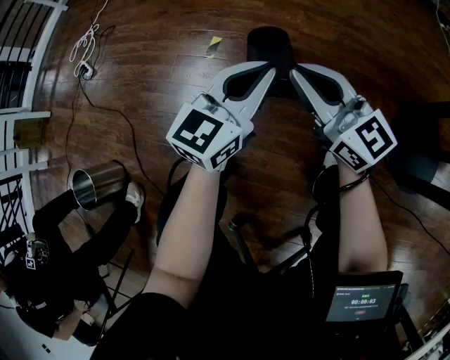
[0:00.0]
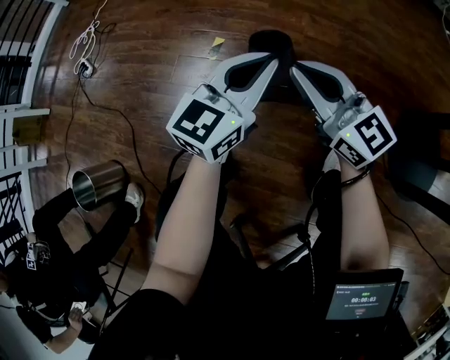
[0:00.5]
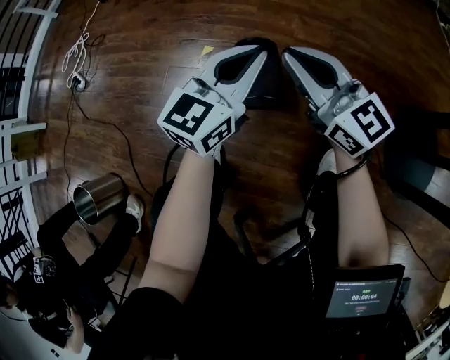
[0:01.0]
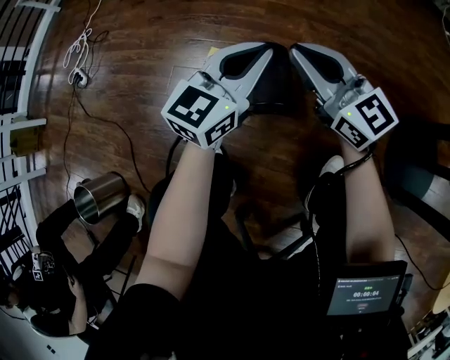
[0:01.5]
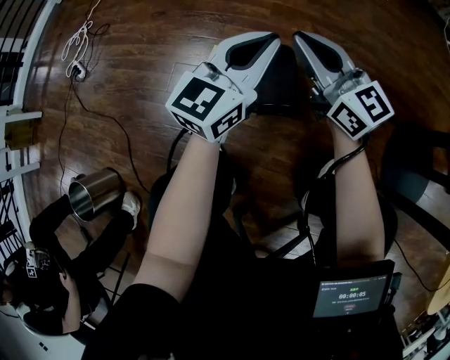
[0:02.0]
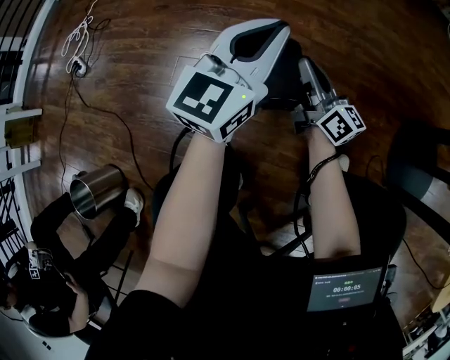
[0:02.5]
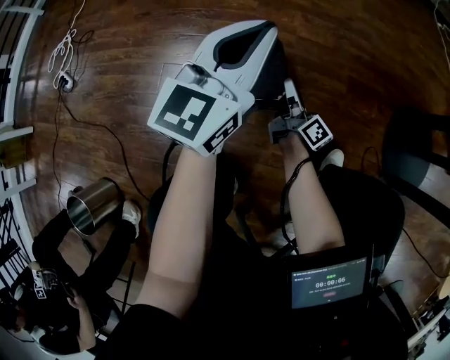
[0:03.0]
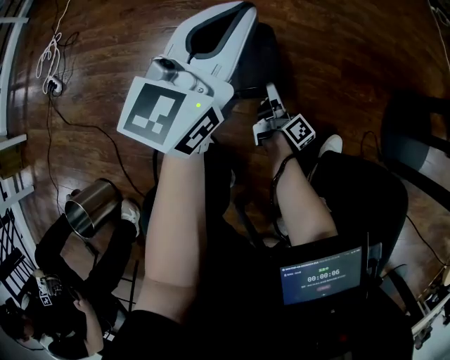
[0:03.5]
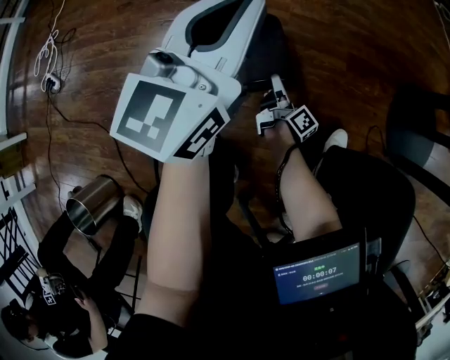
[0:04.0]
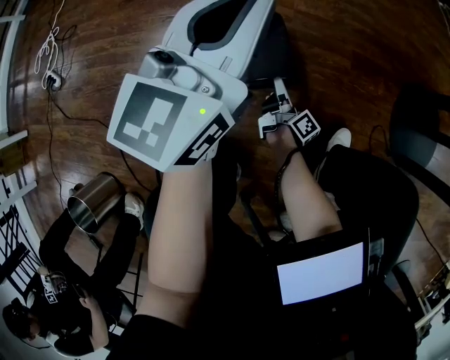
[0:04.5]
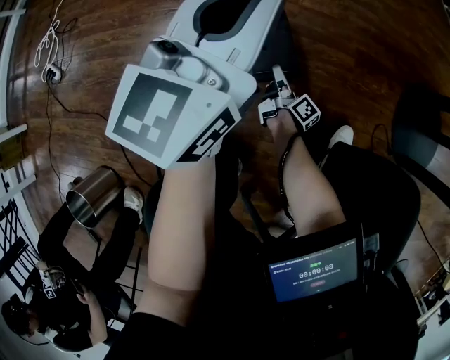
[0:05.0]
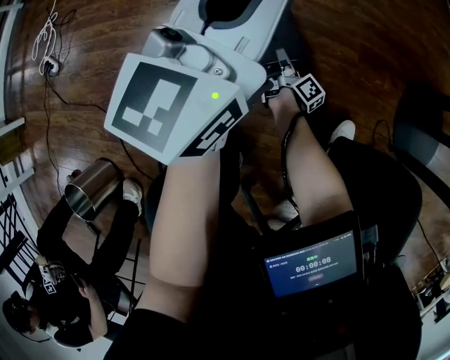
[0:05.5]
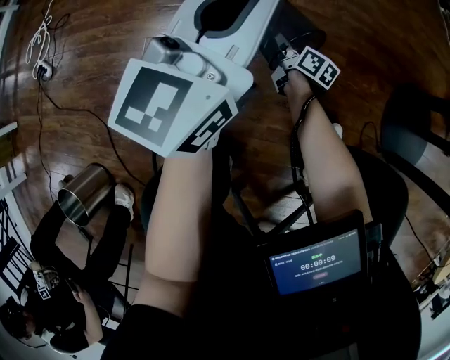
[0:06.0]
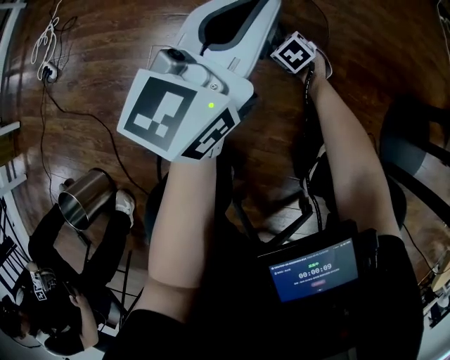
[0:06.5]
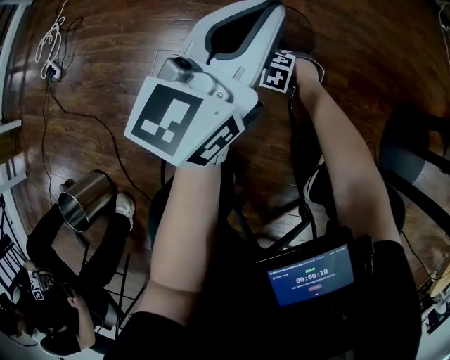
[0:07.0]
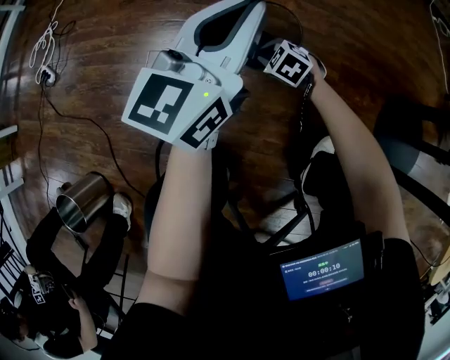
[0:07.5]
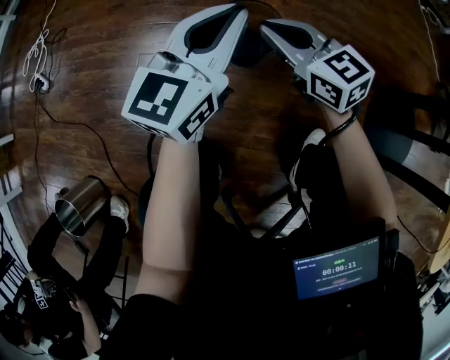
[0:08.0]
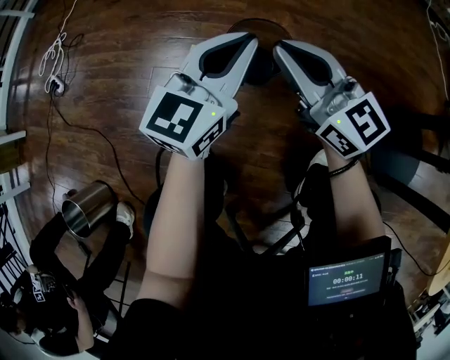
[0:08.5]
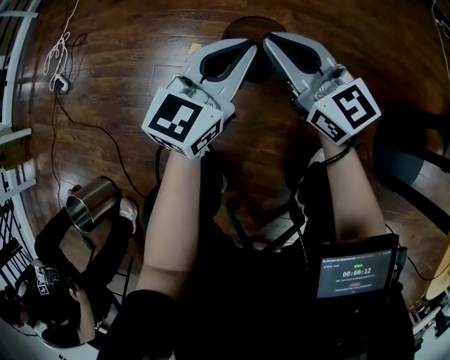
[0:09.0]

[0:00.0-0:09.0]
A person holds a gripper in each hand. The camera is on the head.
0:00.0 to 0:02.0: Both grippers move forward, approximately 15 cm.
0:02.0 to 0:04.5: The right gripper shifts about 35 cm downward, rolls clockwise, seen from behind, by roughly 70 degrees, and opens up.
0:04.5 to 0:07.0: The right gripper shifts by roughly 10 cm, rolls counterclockwise, seen from behind, by approximately 130 degrees, and closes its fingers.
0:07.0 to 0:09.0: The right gripper is displaced upward by approximately 40 cm, and tilts its fingers roughly 80 degrees upward; the left gripper shifts approximately 5 cm downward.

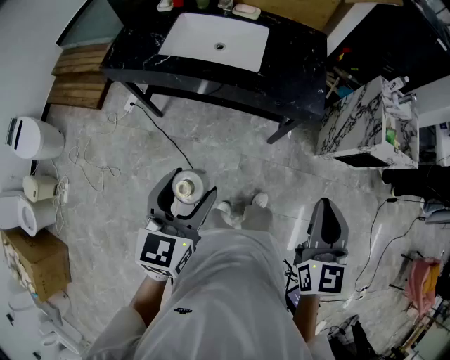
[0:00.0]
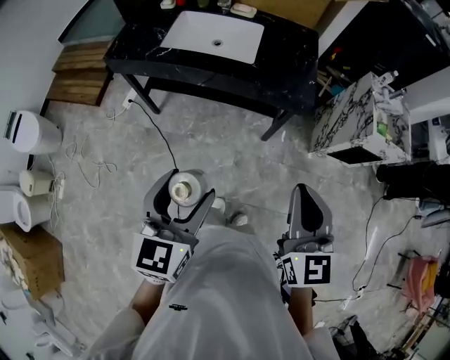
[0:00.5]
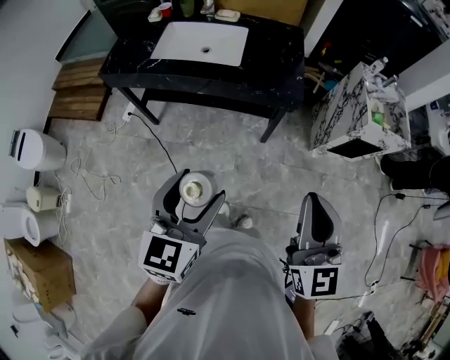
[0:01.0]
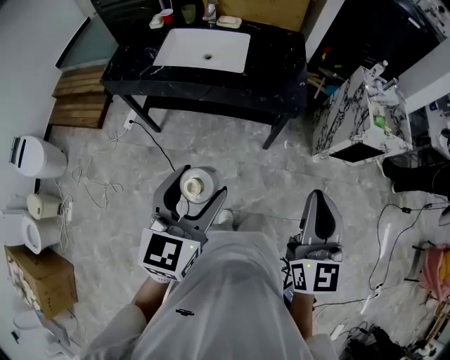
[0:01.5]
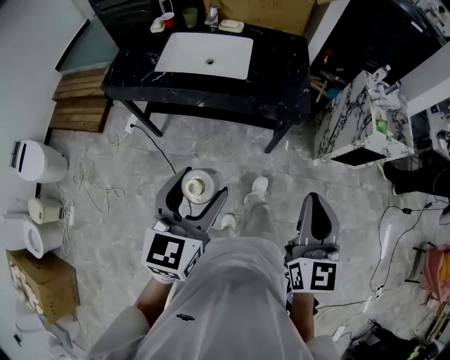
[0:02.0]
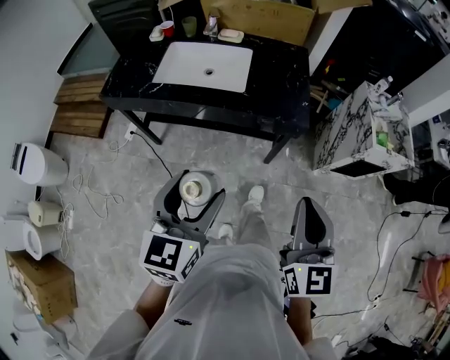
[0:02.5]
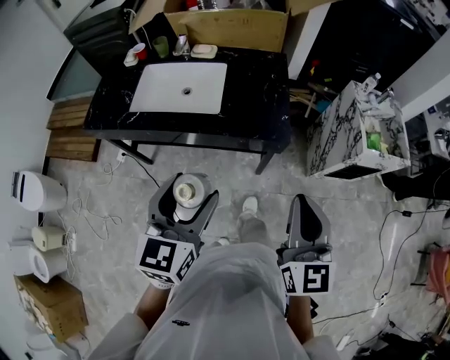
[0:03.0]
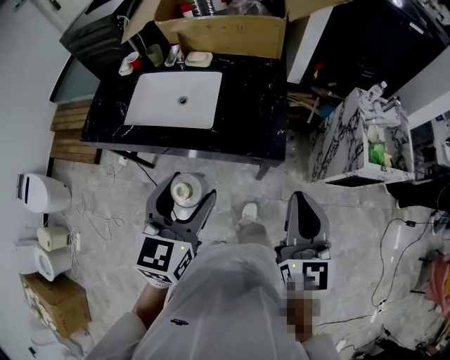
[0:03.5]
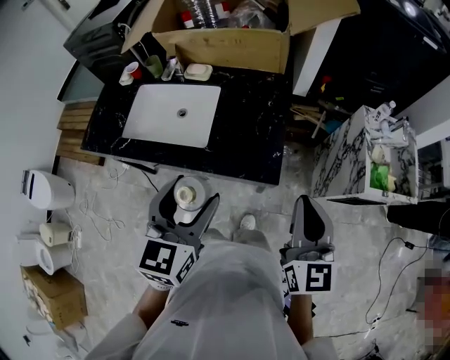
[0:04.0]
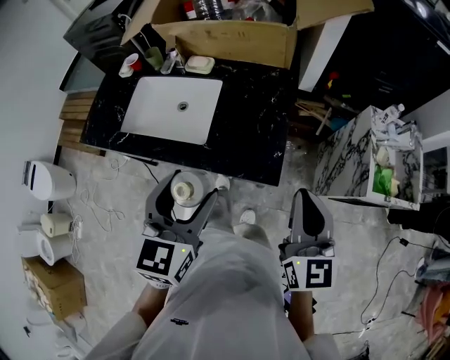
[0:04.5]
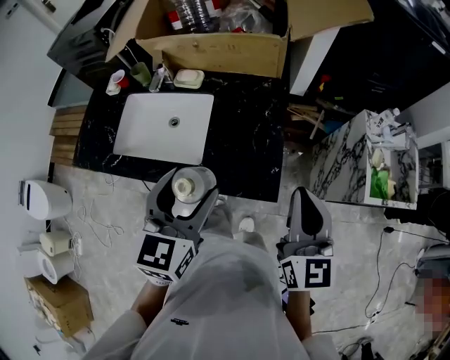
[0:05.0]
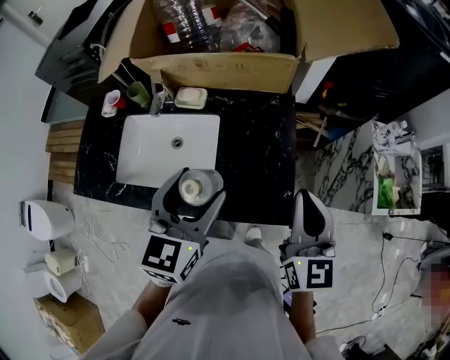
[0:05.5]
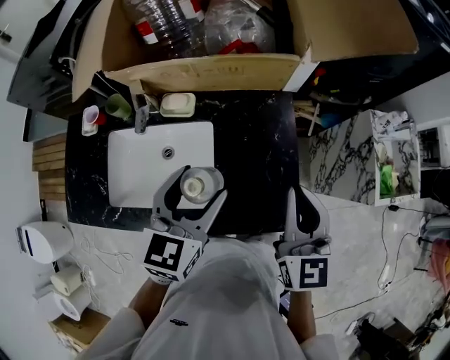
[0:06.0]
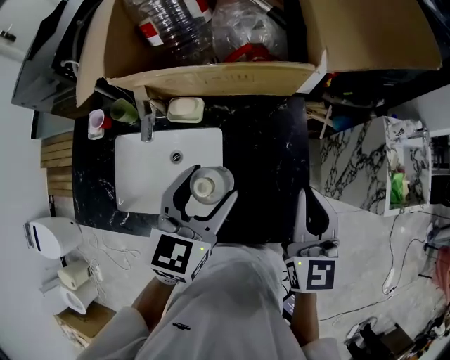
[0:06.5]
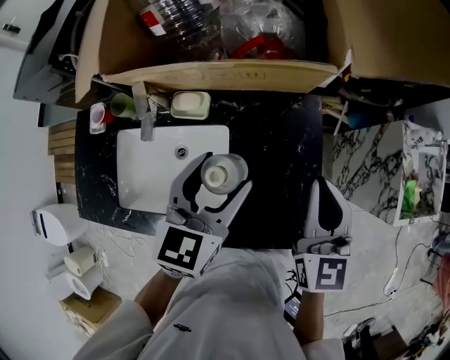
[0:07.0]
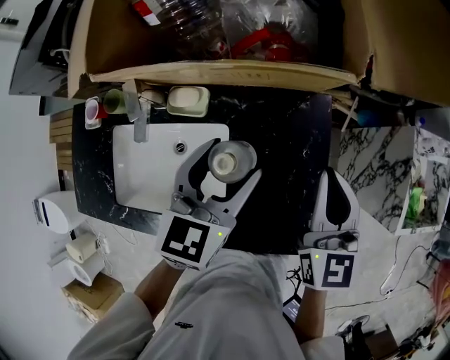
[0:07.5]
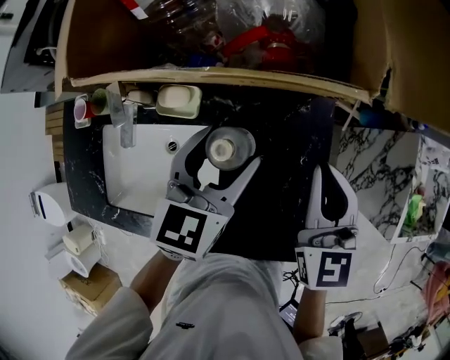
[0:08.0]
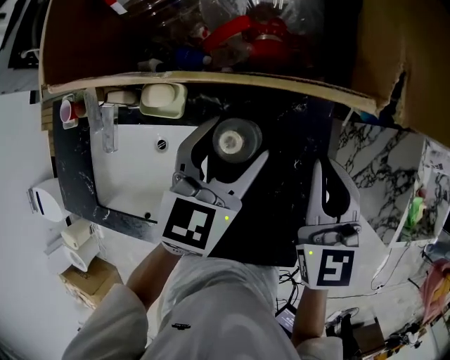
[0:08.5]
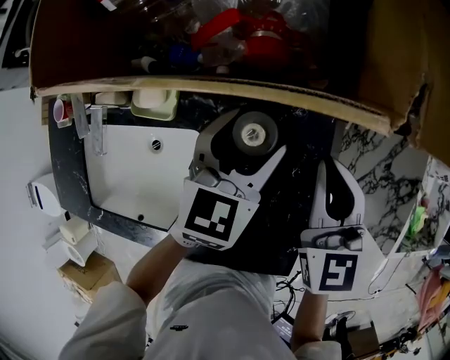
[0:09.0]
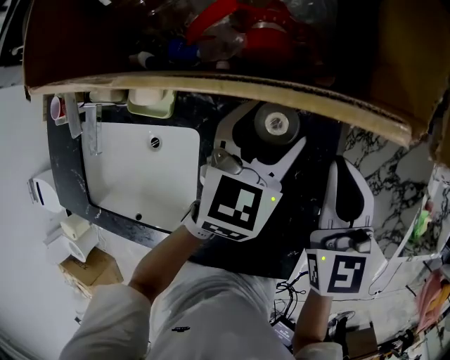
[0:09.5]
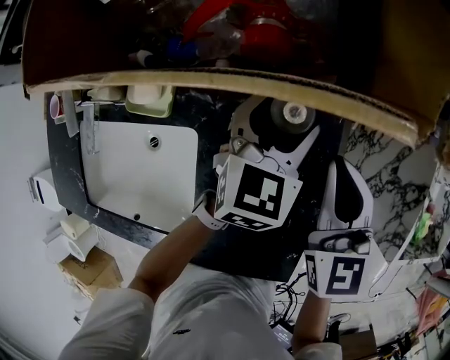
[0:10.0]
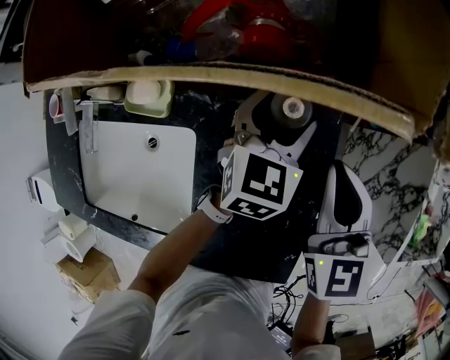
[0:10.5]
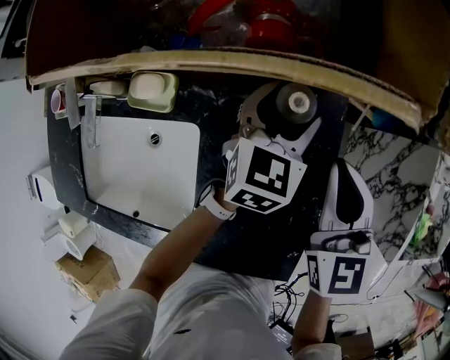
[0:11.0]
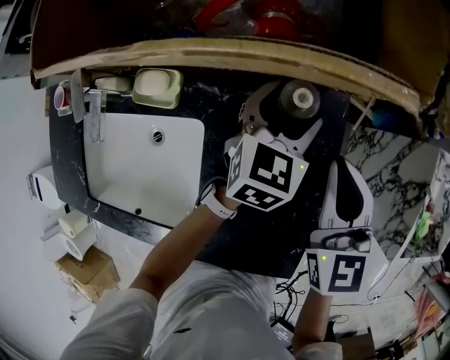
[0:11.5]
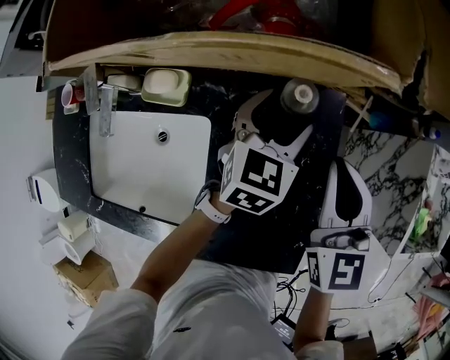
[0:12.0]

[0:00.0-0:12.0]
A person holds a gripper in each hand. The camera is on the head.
0:00.0 to 0:02.0: The right gripper goes roughly 5 cm backward.
0:02.0 to 0:04.0: The two grippers go roughly 35 cm forward and to the right.
0:04.0 to 0:06.0: The right gripper is displaced forward and to the left by approximately 25 cm; the left gripper is displaced forward by roughly 25 cm.
0:06.0 to 0:08.0: Both grippers move forward and downward, about 20 cm.
0:08.0 to 0:10.0: The left gripper heads downward, to the right and forward, covering some 20 cm. The right gripper is displaced downward by some 10 cm.
0:10.0 to 0:12.0: The grippers move only a little.

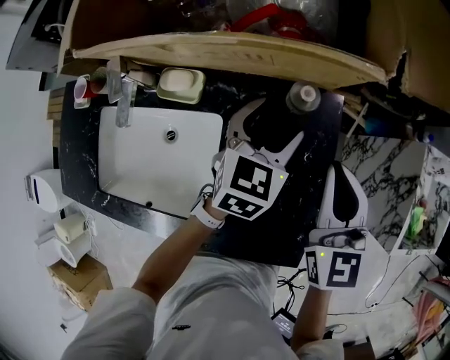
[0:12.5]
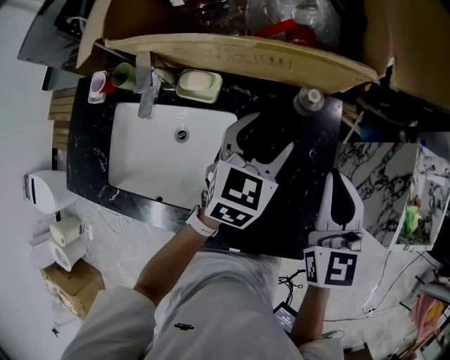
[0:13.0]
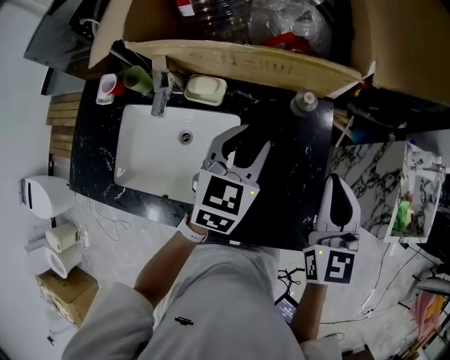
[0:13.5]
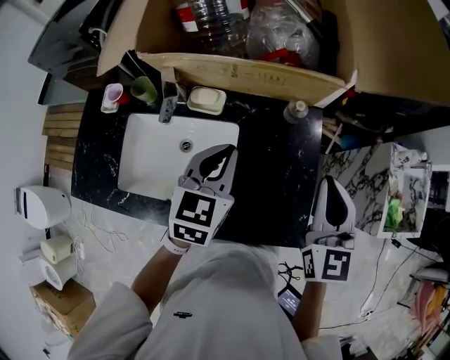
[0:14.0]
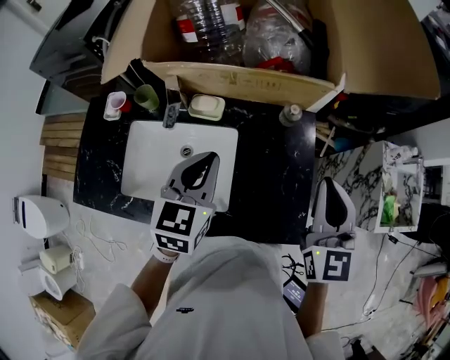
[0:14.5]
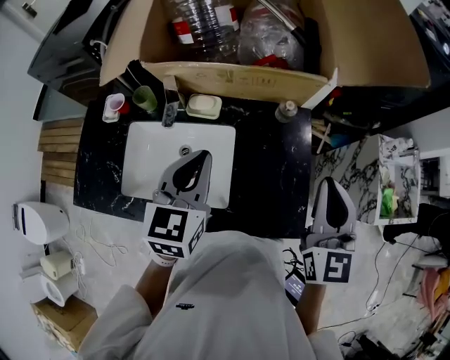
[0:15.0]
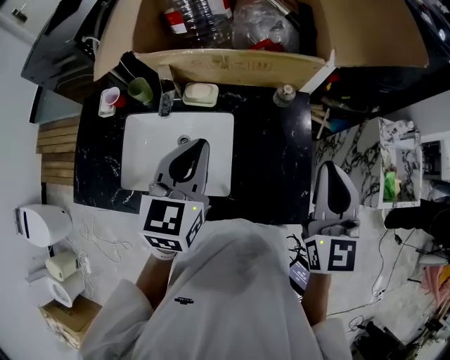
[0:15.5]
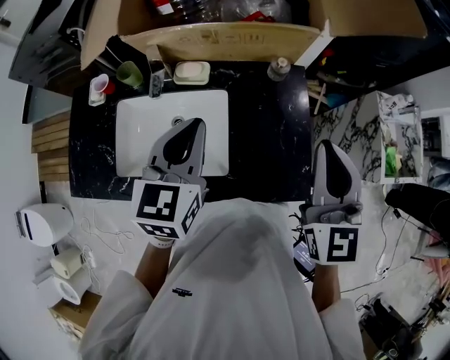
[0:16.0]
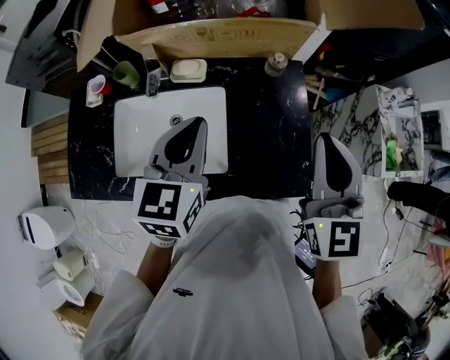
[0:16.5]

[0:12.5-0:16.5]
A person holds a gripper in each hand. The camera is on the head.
0:12.5 to 0:14.5: The right gripper heads upward and backward, covering about 20 cm. The left gripper travels upward, backward and to the left by approximately 30 cm, and closes its fingers.
0:14.5 to 0:16.5: The right gripper shifts by about 5 cm.

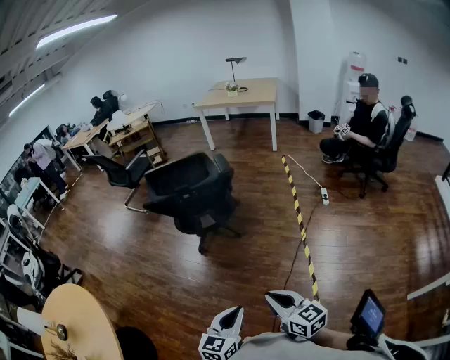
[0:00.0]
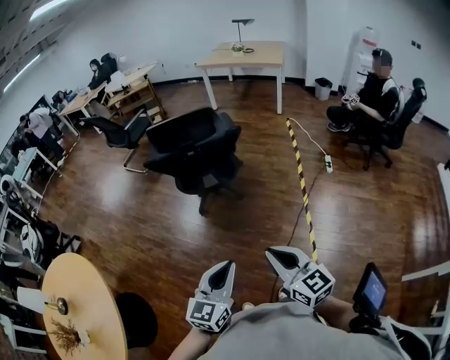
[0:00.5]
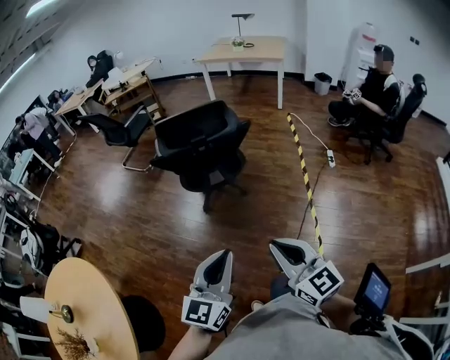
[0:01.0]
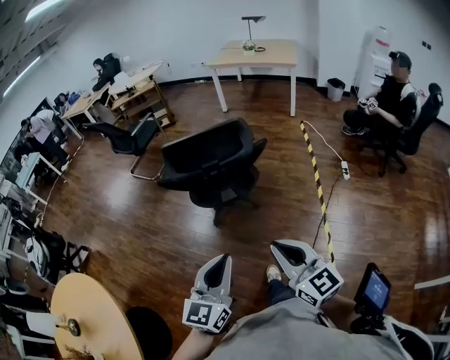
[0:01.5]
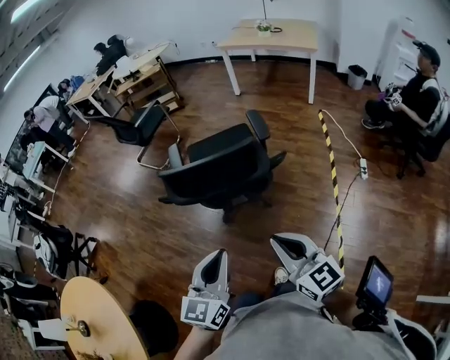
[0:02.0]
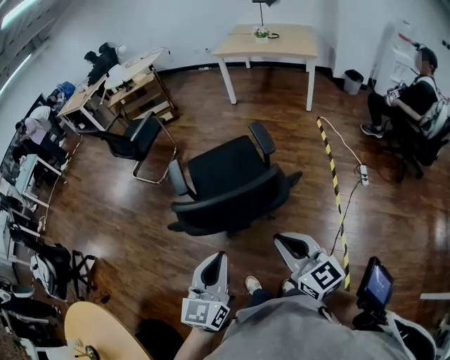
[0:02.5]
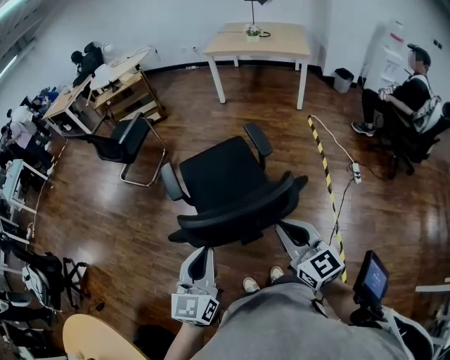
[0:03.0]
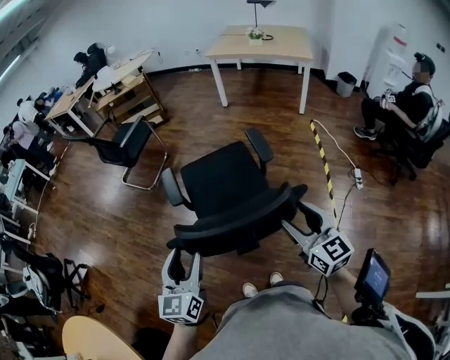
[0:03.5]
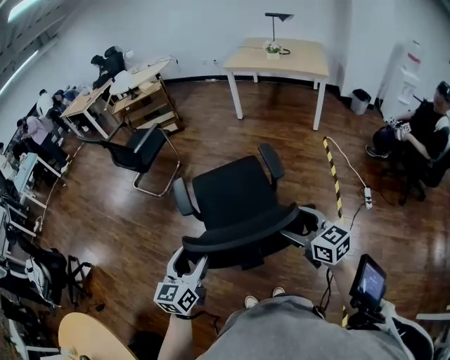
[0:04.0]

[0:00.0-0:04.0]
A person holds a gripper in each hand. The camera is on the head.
0:00.0 to 0:02.0: The two grippers go roughly 30 cm forward.
0:02.0 to 0:04.0: The right gripper goes approximately 25 cm forward, and opens its fingers, while the left gripper is displaced forward and to the left by approximately 25 cm, and opens.
